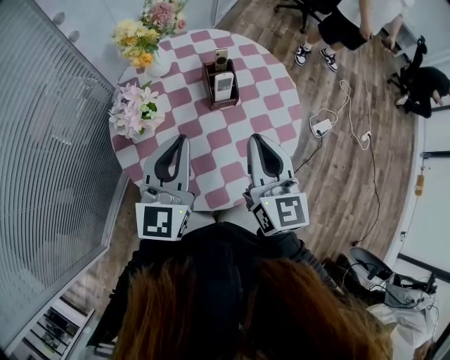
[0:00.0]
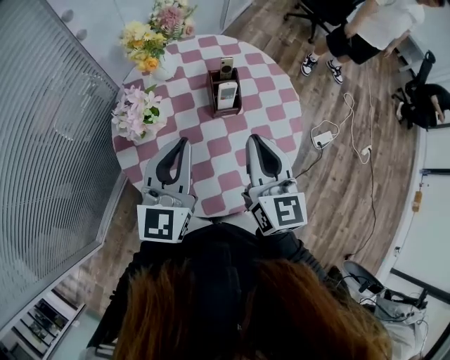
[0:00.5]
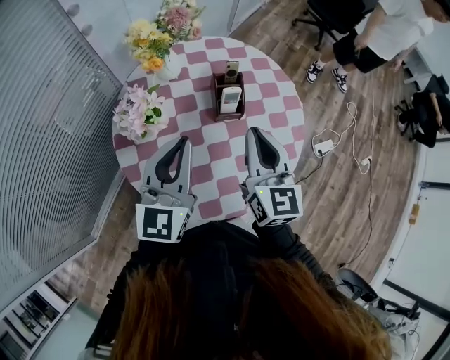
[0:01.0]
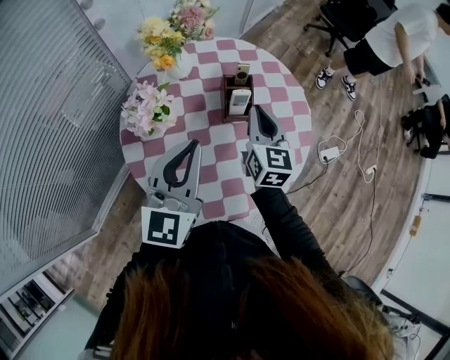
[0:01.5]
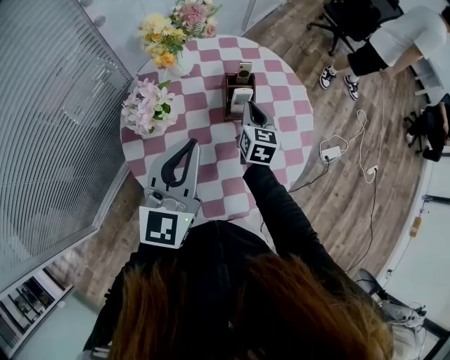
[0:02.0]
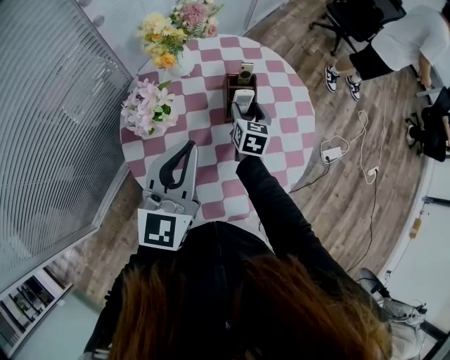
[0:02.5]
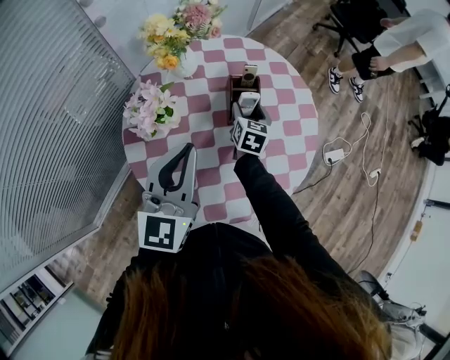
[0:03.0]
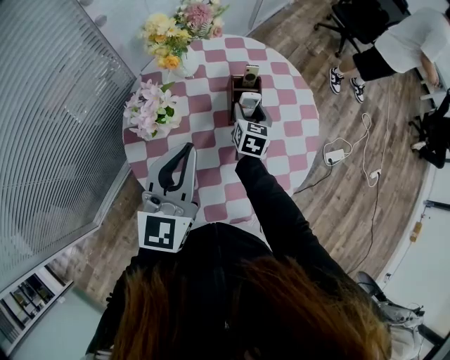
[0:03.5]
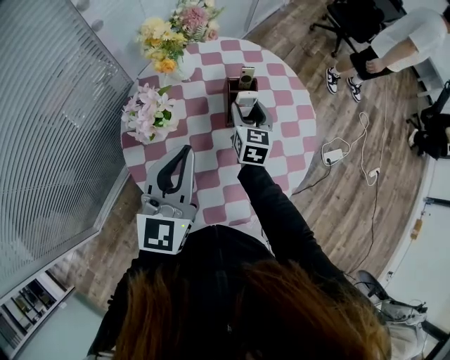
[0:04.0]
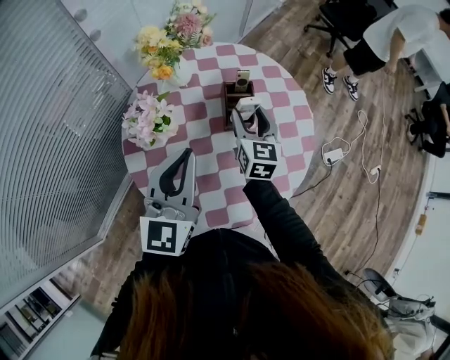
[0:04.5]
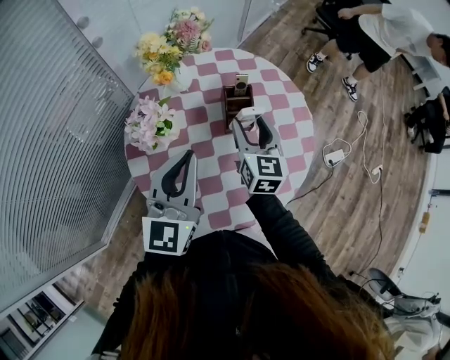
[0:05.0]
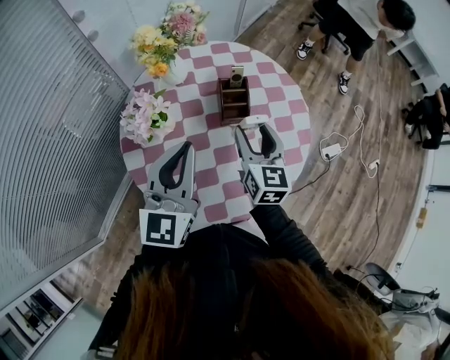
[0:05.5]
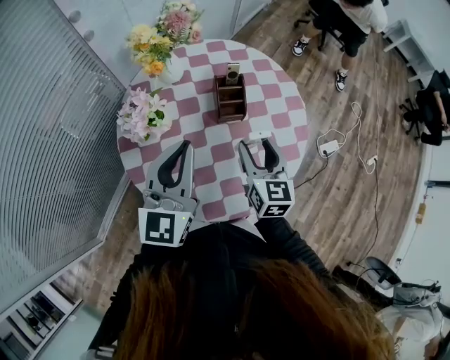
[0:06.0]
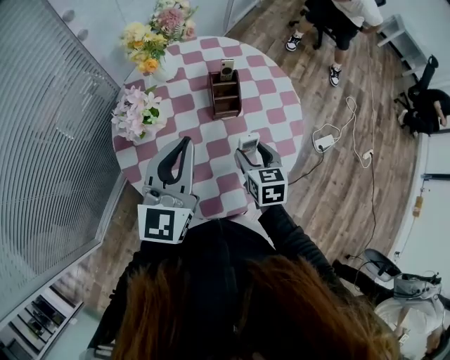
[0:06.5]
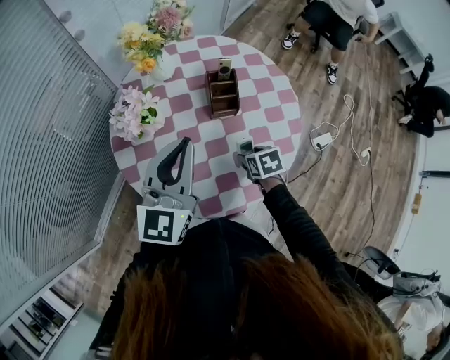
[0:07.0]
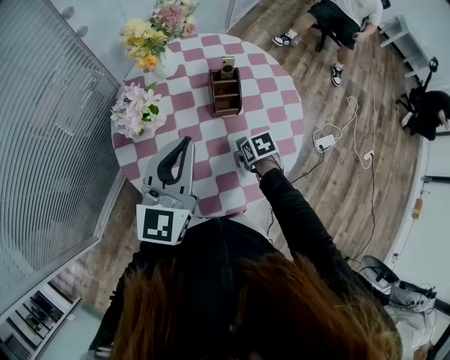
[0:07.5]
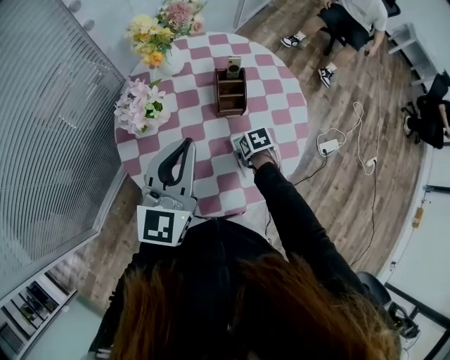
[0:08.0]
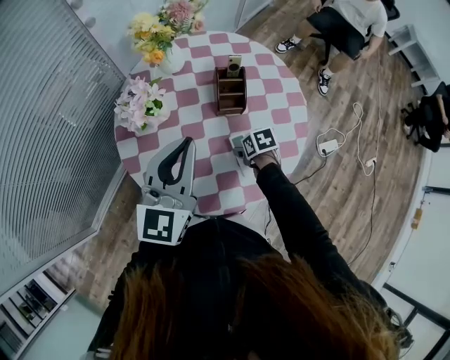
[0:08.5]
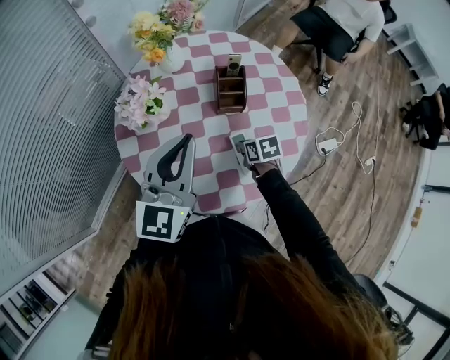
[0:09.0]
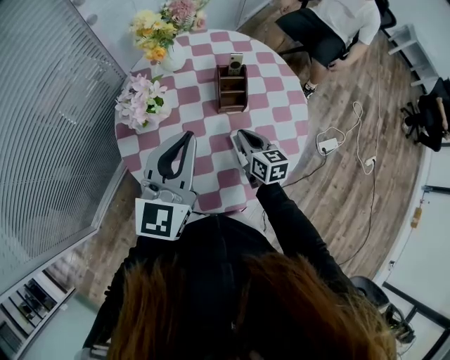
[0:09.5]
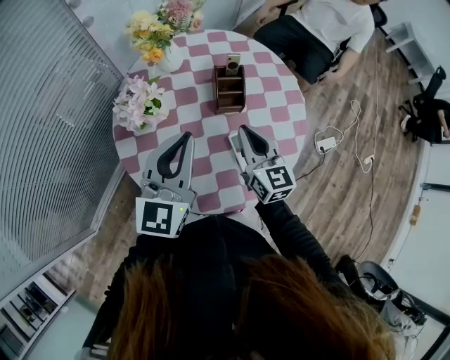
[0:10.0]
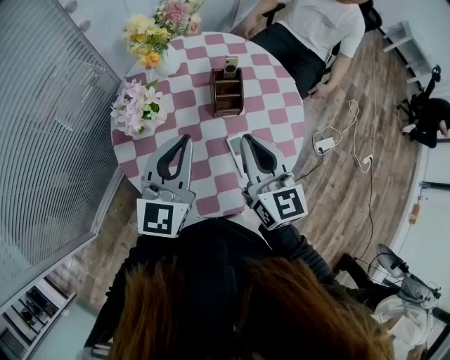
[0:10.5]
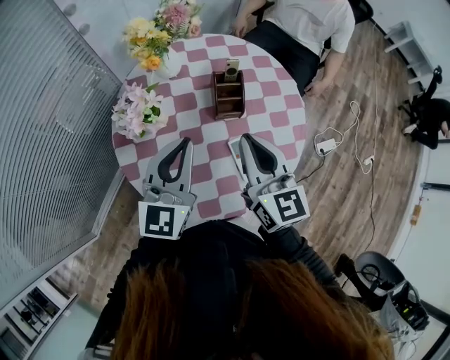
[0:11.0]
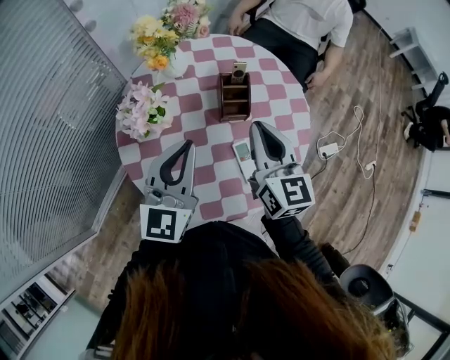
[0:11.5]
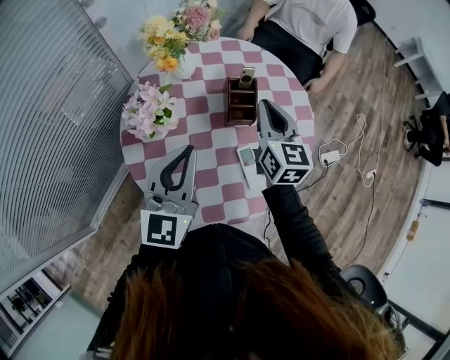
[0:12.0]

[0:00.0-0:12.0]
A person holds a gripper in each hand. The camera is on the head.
0:00.0 to 0:02.0: The right gripper shifts approximately 25 cm forward and downward.
0:02.0 to 0:04.0: The right gripper opens its fingers.
0:04.0 to 0:06.0: The right gripper travels backward and upward by some 15 cm.
0:06.0 to 0:08.0: The right gripper goes about 25 cm downward, and angles its fingers downward, by about 50 degrees.
0:08.0 to 0:10.0: The right gripper moves upward, roughly 25 cm, angles its fingers upward, by about 60 degrees, and closes.
0:10.0 to 0:12.0: The right gripper moves forward and upward, approximately 10 cm.

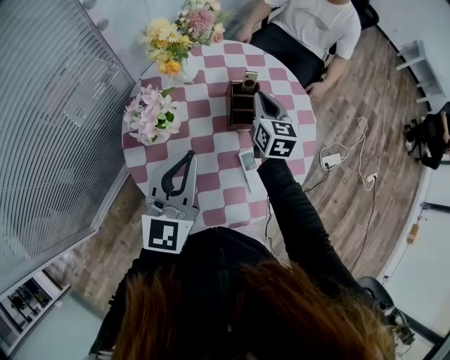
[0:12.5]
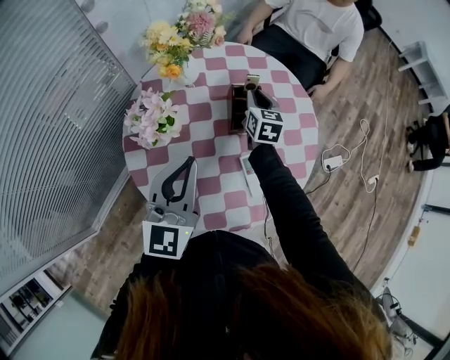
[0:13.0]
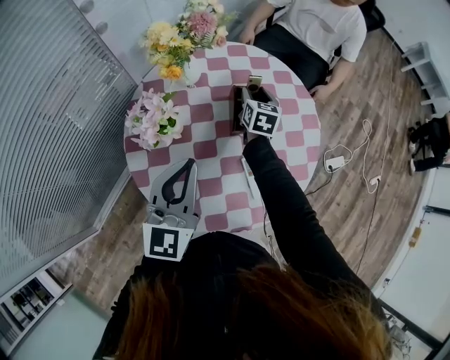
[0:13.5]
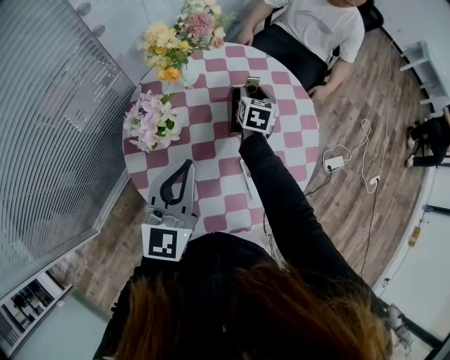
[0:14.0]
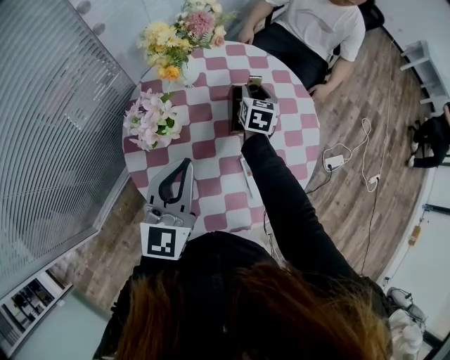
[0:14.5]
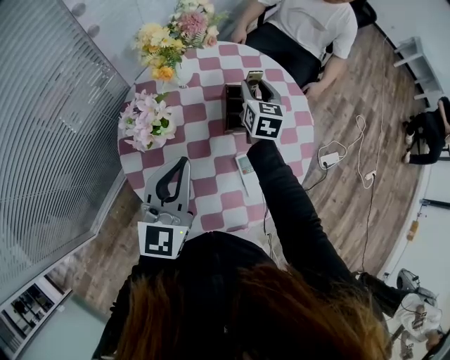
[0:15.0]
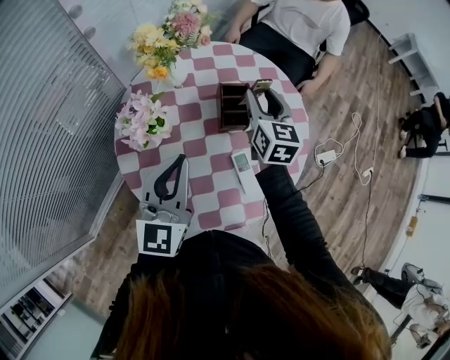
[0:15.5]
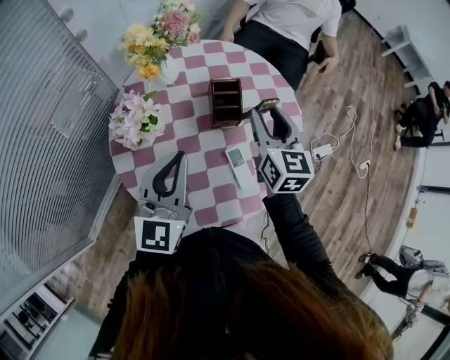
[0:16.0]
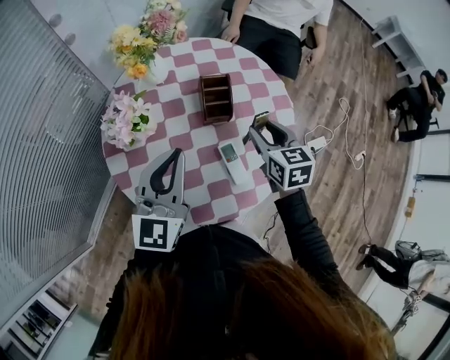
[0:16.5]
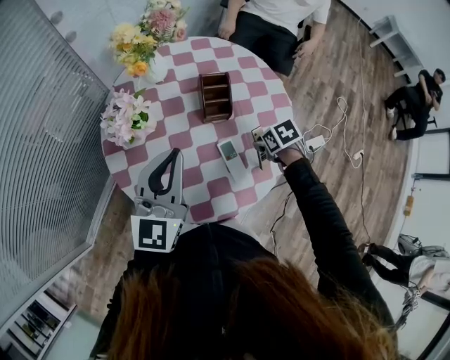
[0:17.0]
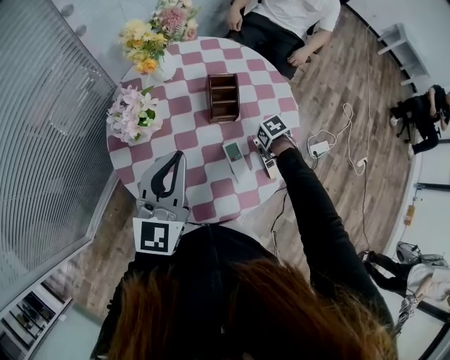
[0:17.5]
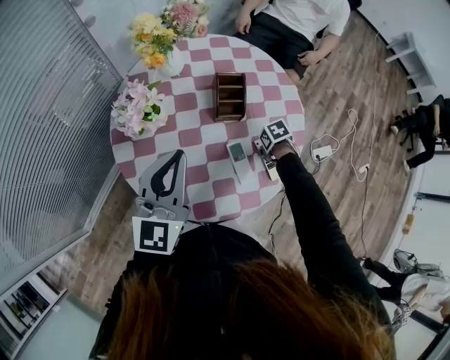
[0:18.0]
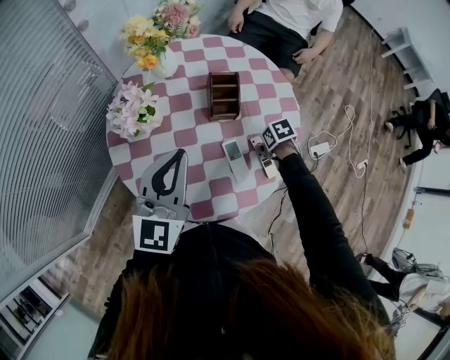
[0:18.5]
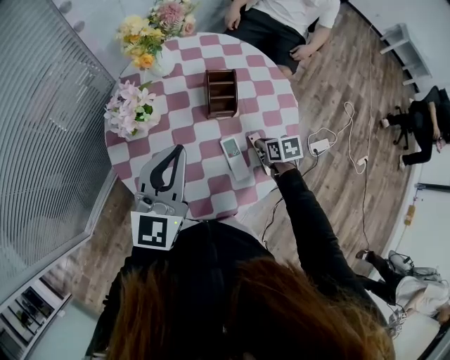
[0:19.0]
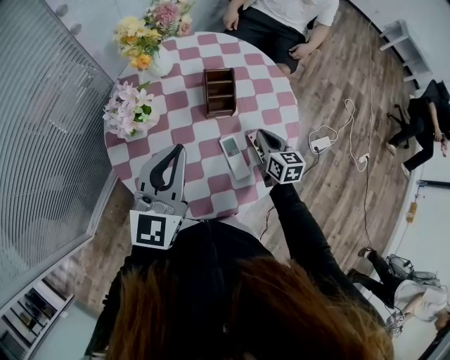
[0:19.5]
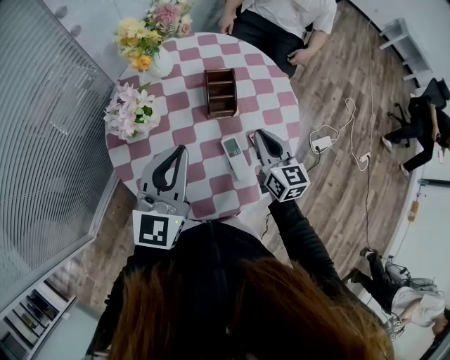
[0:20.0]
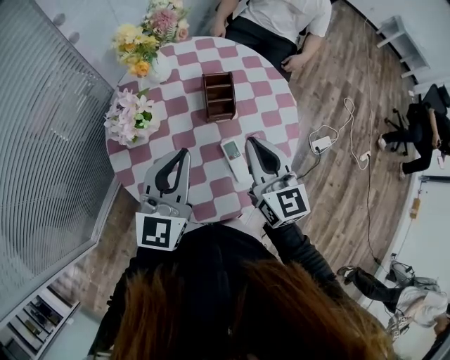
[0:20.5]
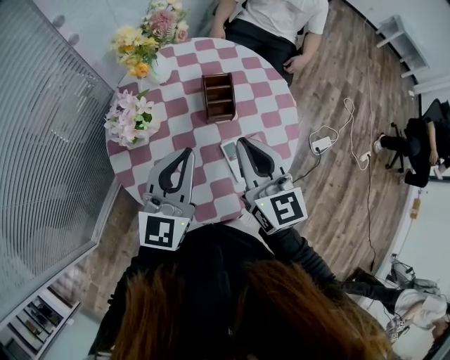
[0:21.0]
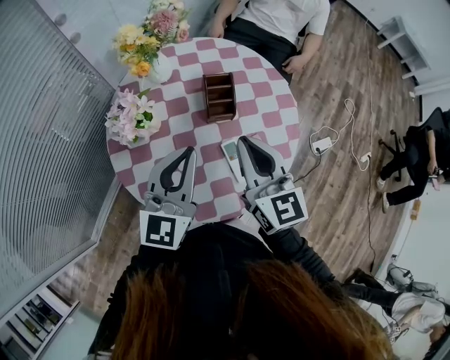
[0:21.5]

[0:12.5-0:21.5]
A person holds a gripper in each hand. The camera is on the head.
0:12.5 to 0:14.5: The right gripper travels downward and forward by about 10 cm, and opens up.
0:14.5 to 0:17.0: The right gripper reaches some 15 cm upward, then returns, and tilts its fingers about 40 degrees downward.
0:17.0 to 0:19.5: The right gripper moves approximately 10 cm downward and comes back, points its fingers some 40 degrees further upward, and closes up.
0:19.5 to 0:21.5: The right gripper shifts some 25 cm upward and to the left, and changes its angle by roughly 30 degrees.

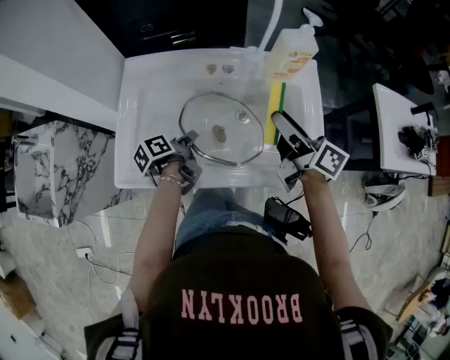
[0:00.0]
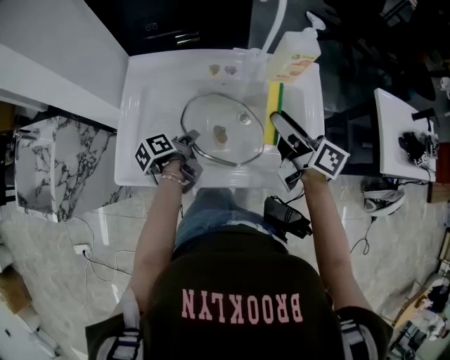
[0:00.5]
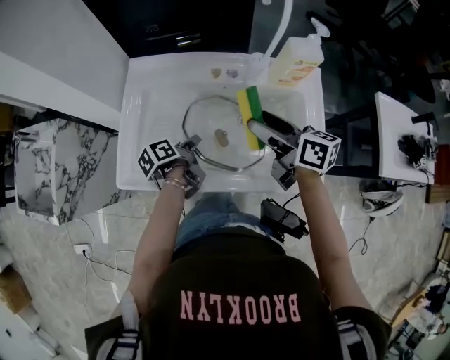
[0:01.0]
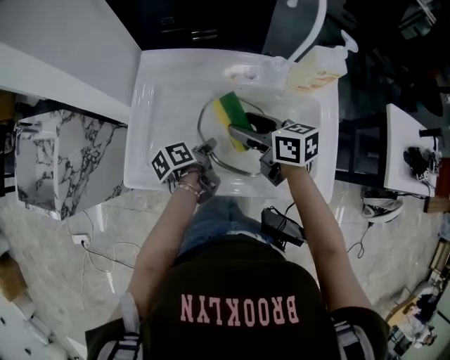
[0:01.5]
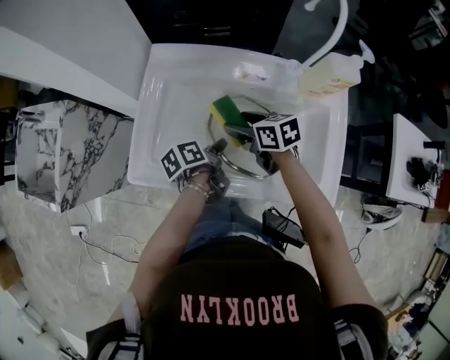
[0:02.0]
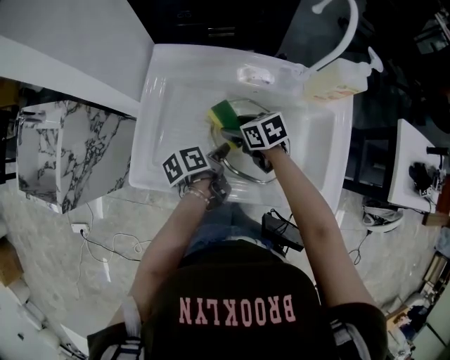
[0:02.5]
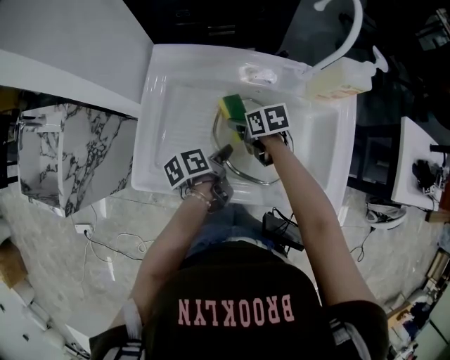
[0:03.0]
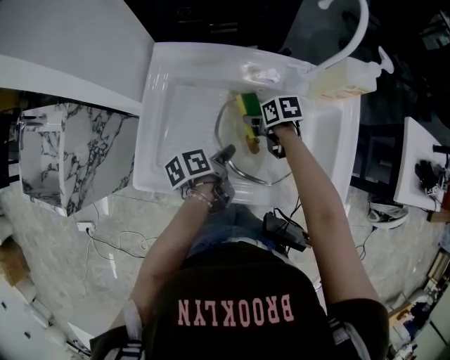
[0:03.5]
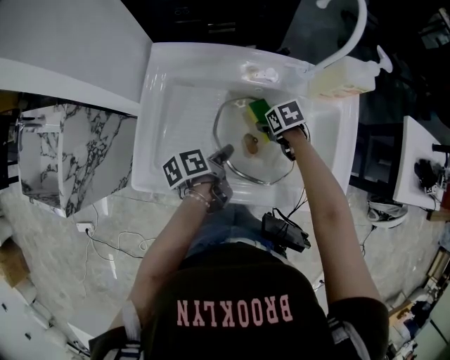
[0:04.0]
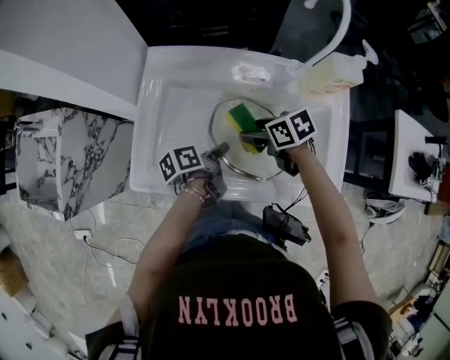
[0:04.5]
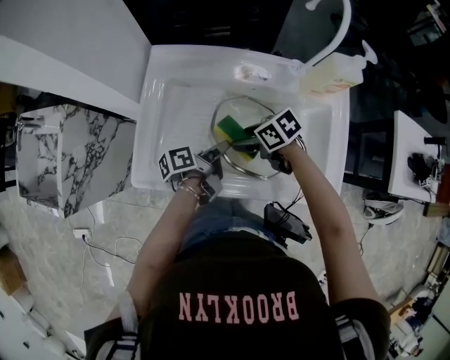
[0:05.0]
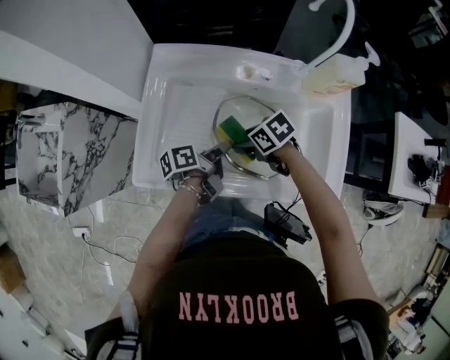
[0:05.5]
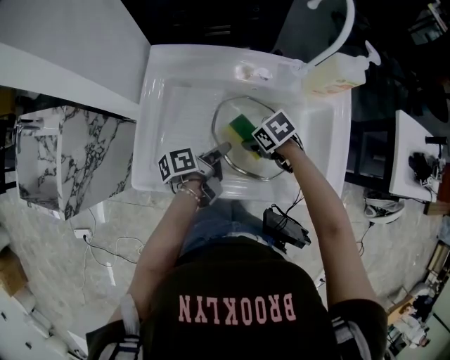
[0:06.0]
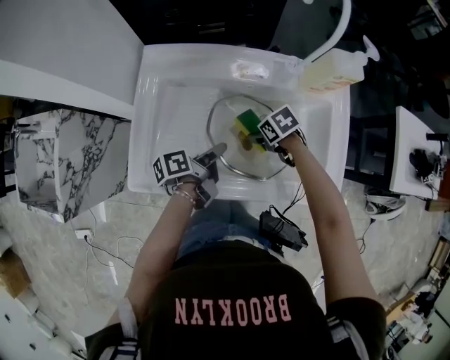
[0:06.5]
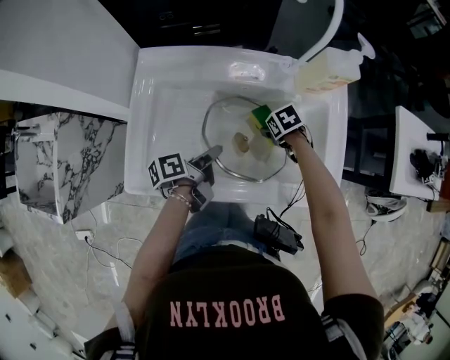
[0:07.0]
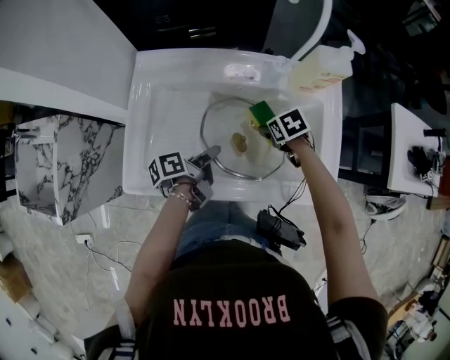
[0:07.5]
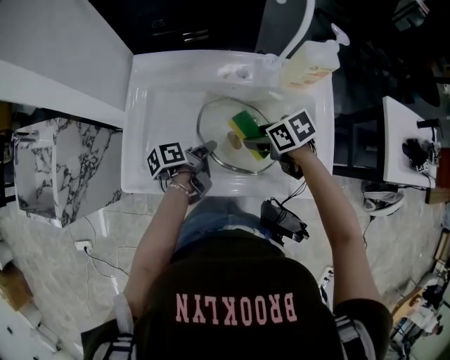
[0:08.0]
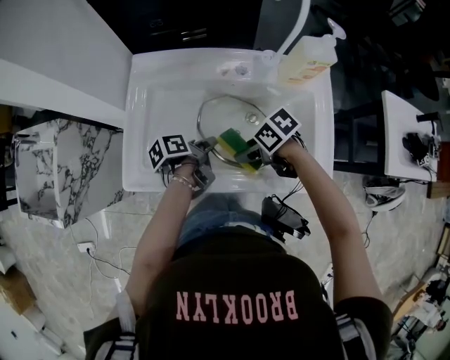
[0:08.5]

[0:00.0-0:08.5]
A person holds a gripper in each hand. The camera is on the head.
0:00.0 to 0:02.0: The right gripper changes place by about 25 cm, and angles its fingers downward, by some 40 degrees.
0:02.0 to 0:04.0: The right gripper travels downward by roughly 15 cm, and angles its fingers downward, by roughly 30 degrees.
0:04.0 to 0:06.5: The right gripper travels upward and back again, roughly 10 cm each way.
0:06.5 to 0:08.5: The right gripper shifts by roughly 15 cm.
